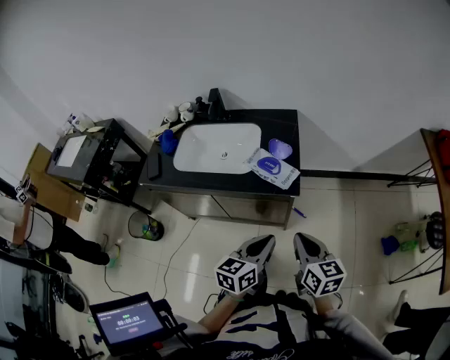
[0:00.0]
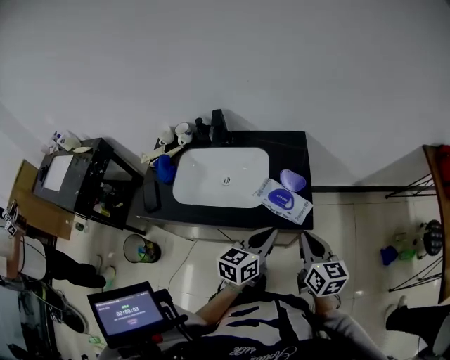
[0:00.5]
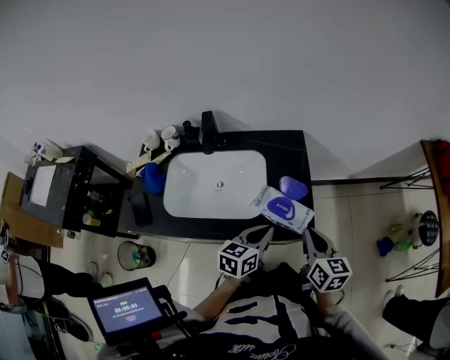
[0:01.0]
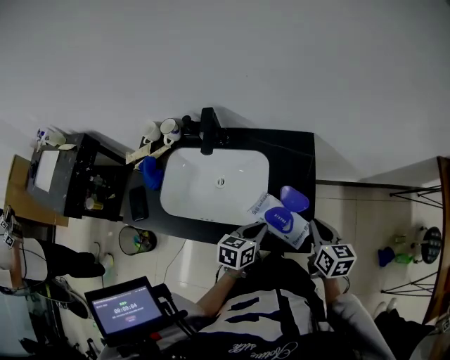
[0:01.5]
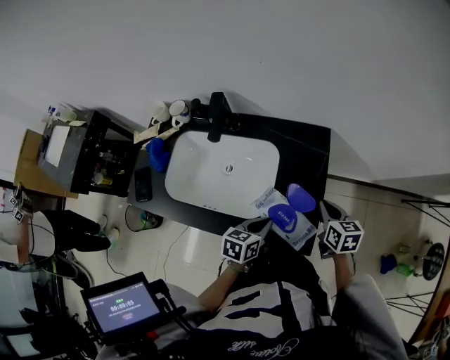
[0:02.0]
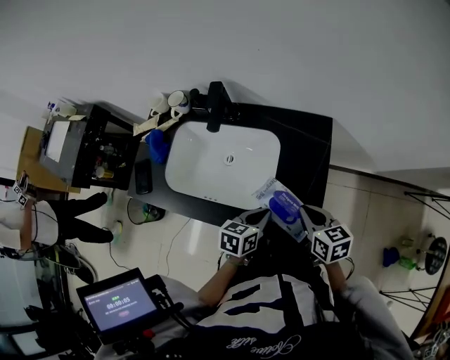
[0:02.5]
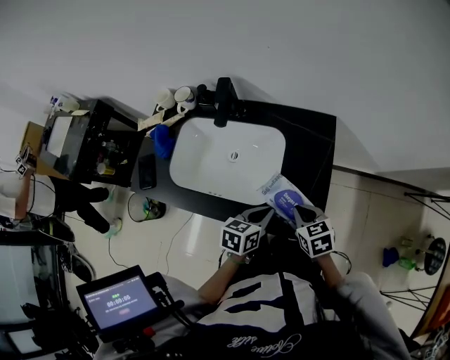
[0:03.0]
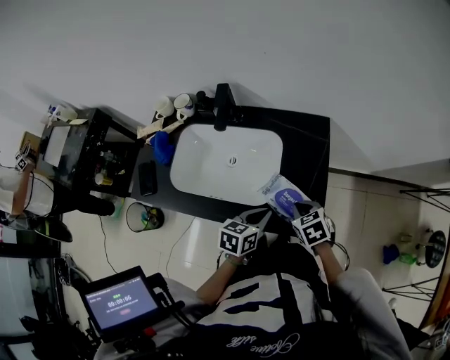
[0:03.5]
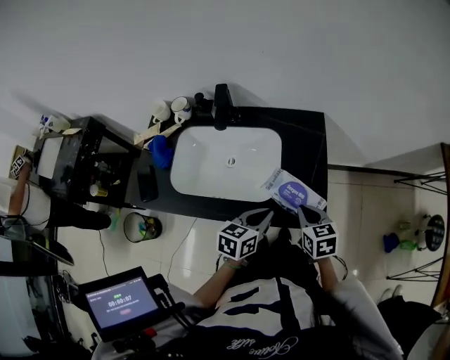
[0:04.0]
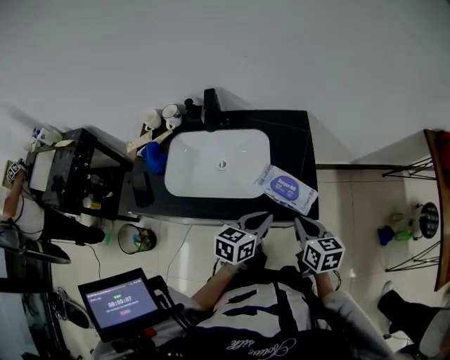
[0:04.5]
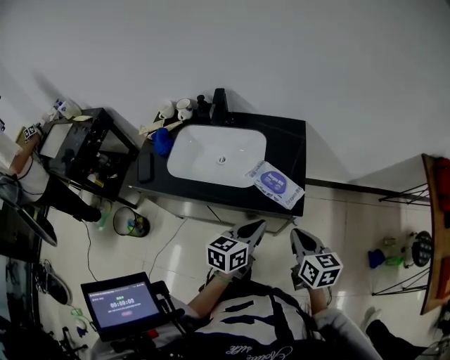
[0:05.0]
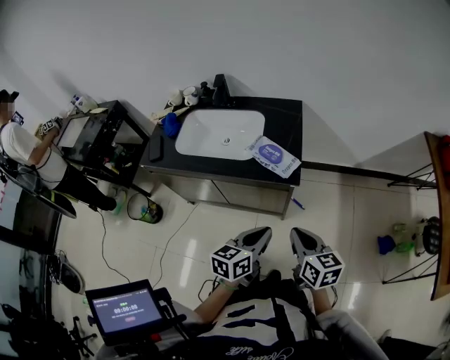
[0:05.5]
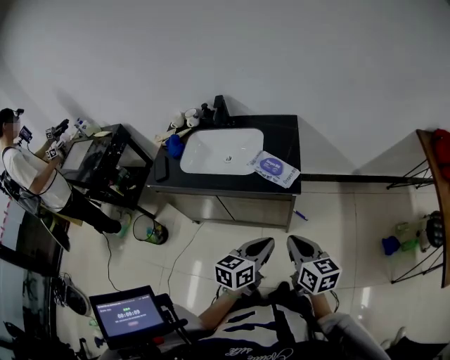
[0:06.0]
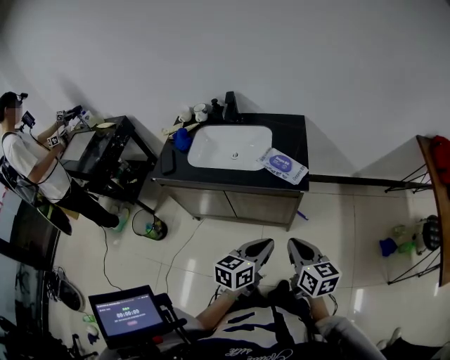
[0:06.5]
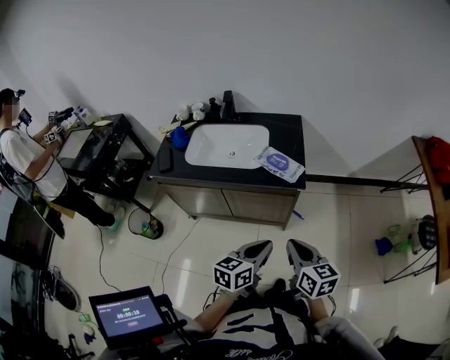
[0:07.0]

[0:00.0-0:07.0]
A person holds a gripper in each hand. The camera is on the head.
0:00.0 to 0:02.0: The left gripper moves forward, downward and to the left, some 30 cm, and turns by approximately 20 degrees, while the right gripper travels forward by approximately 35 cm.
0:02.0 to 0:03.5: The right gripper heads to the left and backward, covering roughly 15 cm, and turns by approximately 30 degrees.
0:03.5 to 0:05.0: The right gripper moves backward, upward and to the right, some 25 cm, and changes its angle by approximately 40 degrees; the left gripper shifts approximately 15 cm backward and upward.
0:05.0 to 0:07.0: The grippers both shift backward by roughly 20 cm.

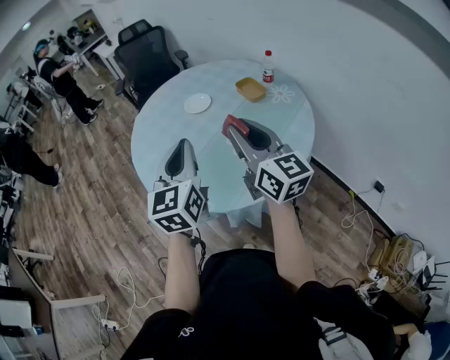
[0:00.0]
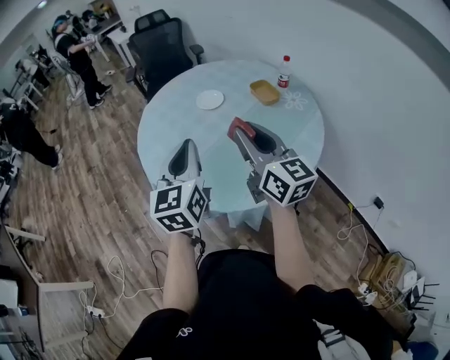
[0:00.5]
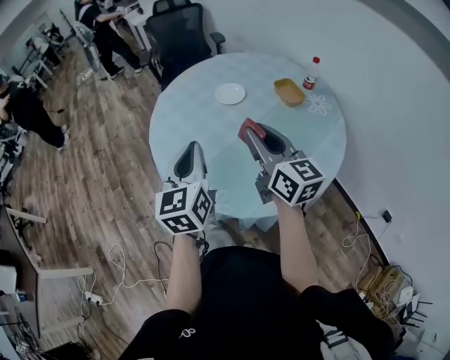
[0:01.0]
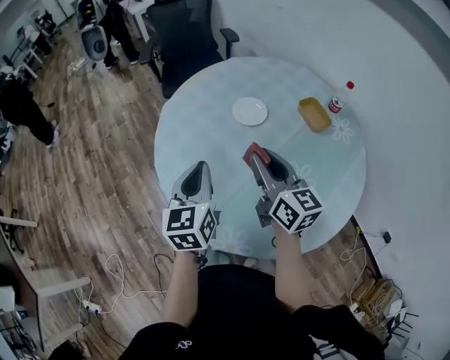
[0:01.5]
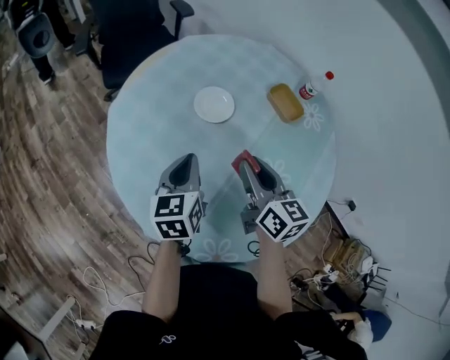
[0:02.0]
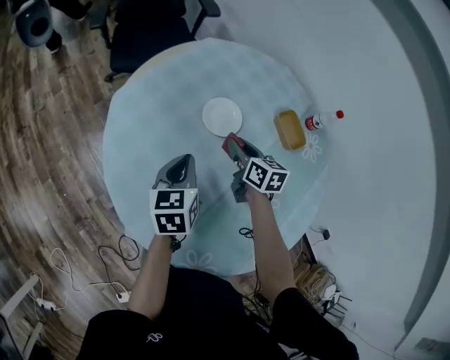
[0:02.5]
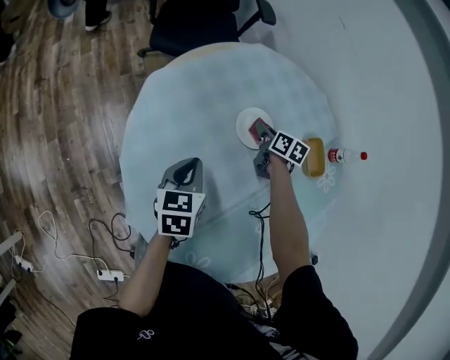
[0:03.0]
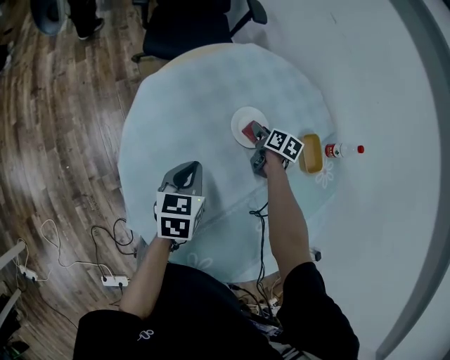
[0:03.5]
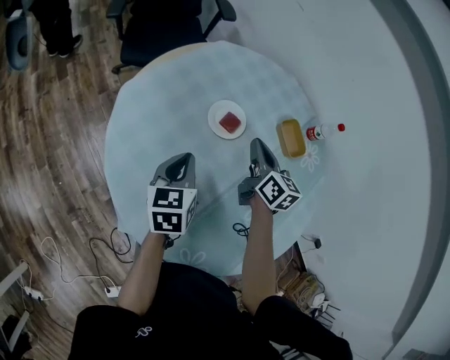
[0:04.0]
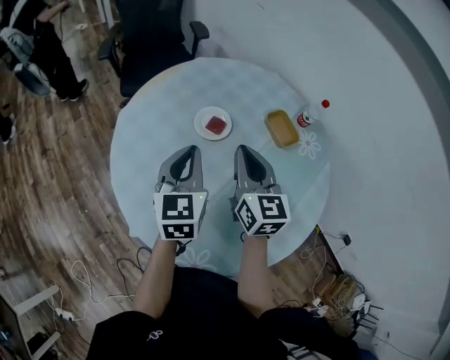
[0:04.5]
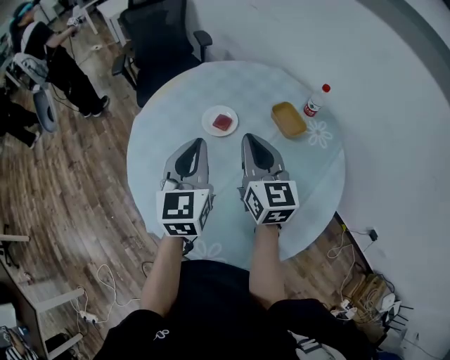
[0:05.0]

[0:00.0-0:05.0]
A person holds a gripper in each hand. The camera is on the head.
0:00.0 to 0:02.5: The two grippers travel together, forward, some 40 cm. The grippers both shift downward by approximately 25 cm. The right gripper tilts its fingers approximately 40 degrees downward; the left gripper turns by about 30 degrees.
0:02.5 to 0:05.0: The left gripper moves upward, to the right and backward, roughly 20 cm, and swivels some 30 degrees; the right gripper travels upward and backward by about 25 cm, tips its fingers upward by some 30 degrees, and closes its fingers.

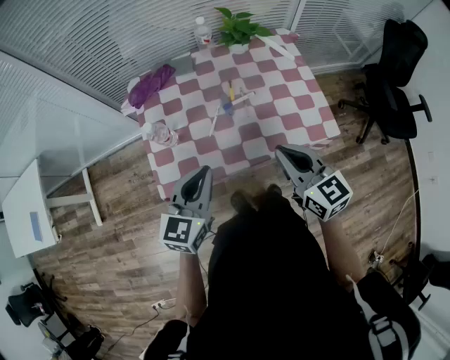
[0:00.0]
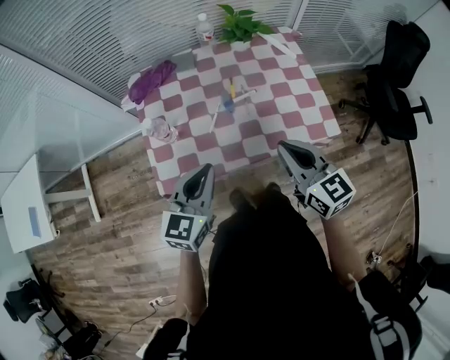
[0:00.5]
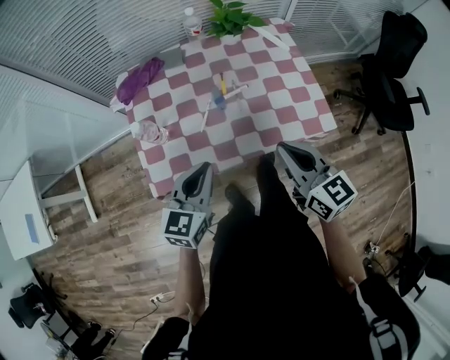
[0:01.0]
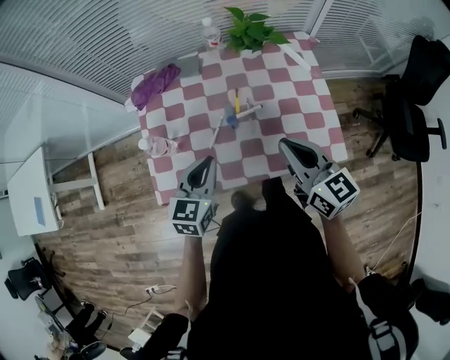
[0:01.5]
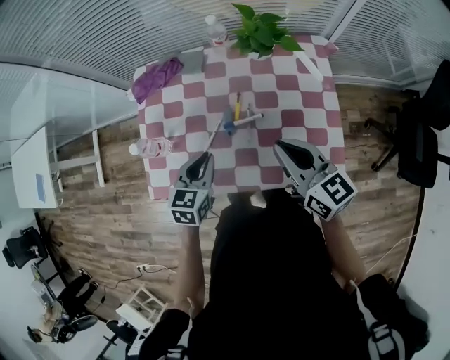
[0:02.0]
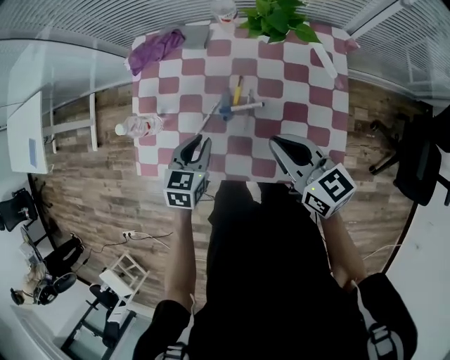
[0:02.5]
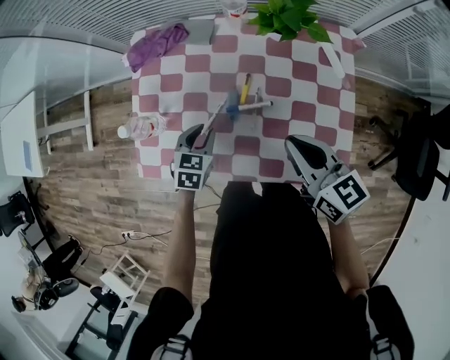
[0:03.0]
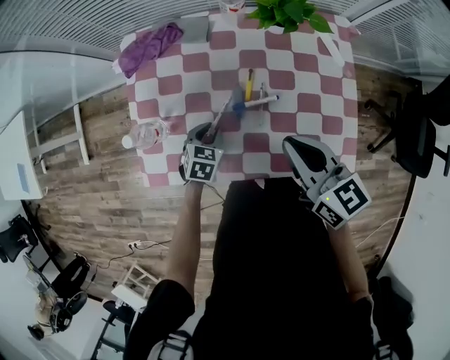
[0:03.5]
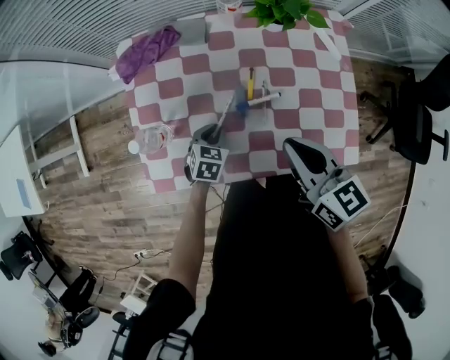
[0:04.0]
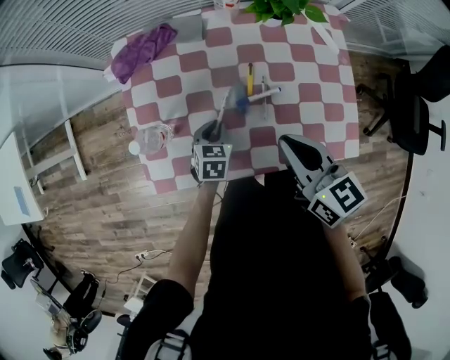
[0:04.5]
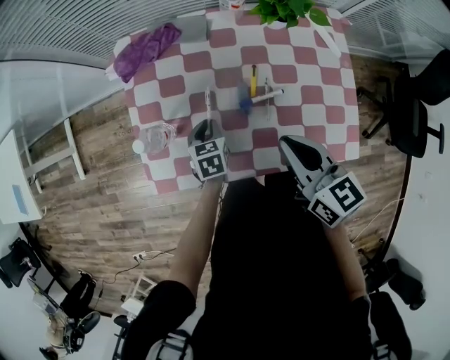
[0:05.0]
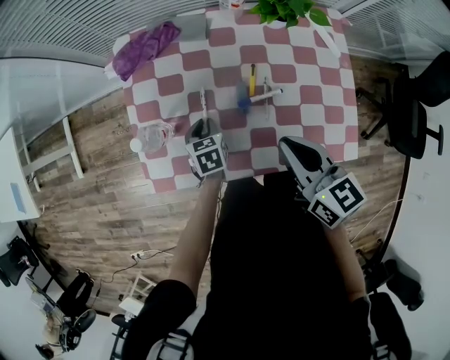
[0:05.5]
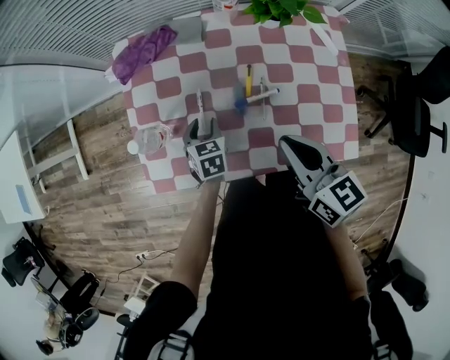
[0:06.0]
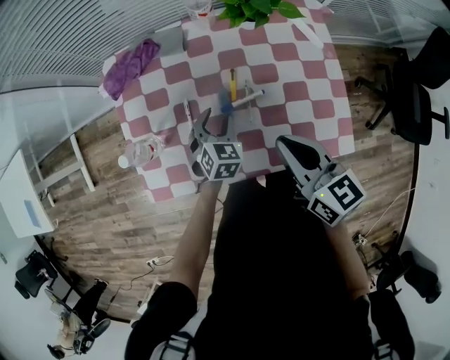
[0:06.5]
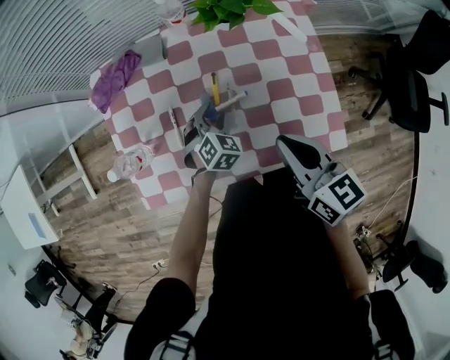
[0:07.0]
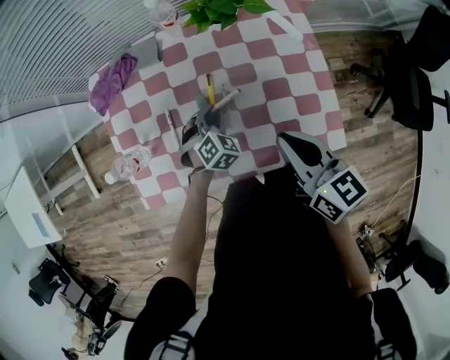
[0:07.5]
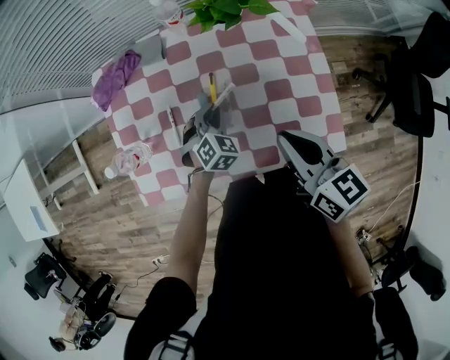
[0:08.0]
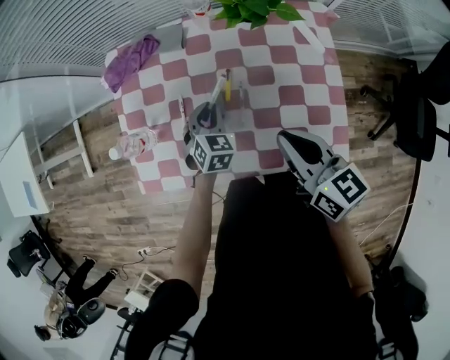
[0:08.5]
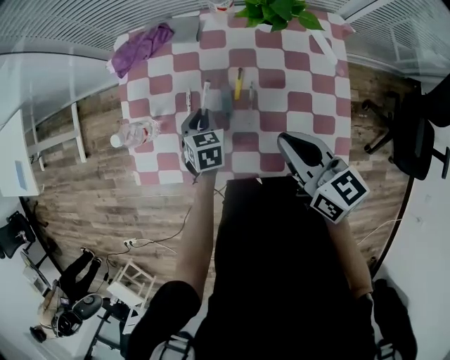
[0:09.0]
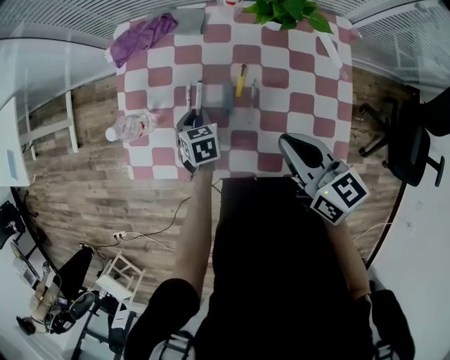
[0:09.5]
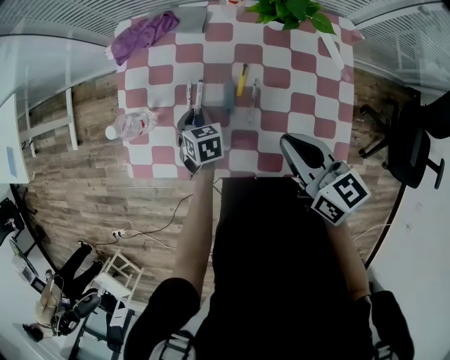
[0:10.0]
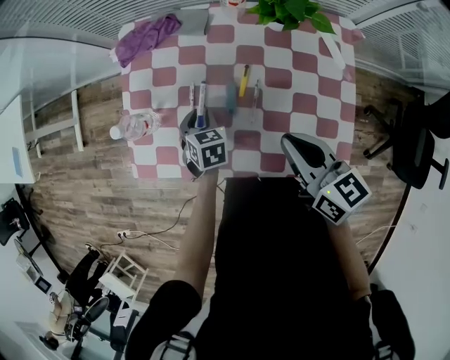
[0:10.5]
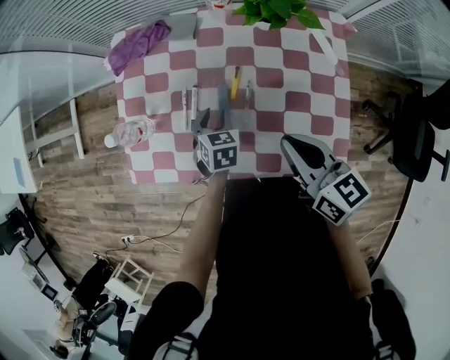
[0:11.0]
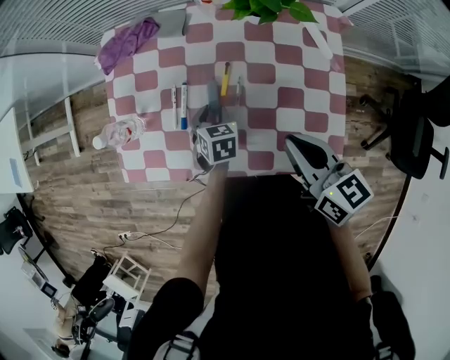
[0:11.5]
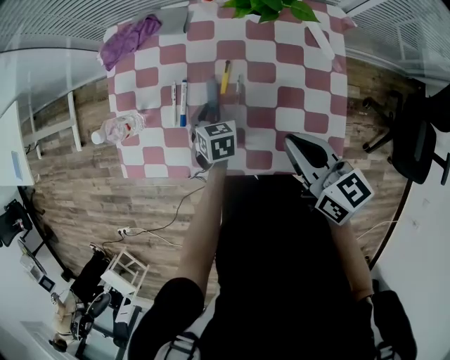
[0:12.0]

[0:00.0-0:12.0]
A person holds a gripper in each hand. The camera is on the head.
0:00.0 to 0:02.0: The left gripper travels forward, downward and to the right by some 20 cm, and rotates approximately 30 degrees, while the right gripper heads forward and to the right, covering roughly 20 cm.
0:02.0 to 0:04.0: The left gripper heads downward, covering approximately 15 cm, and changes its angle by approximately 20 degrees; the right gripper travels to the left by some 5 cm.
0:04.0 to 0:06.0: The left gripper turns by about 20 degrees, and opens.
0:06.0 to 0:08.0: Both grippers move to the right, approximately 15 cm. The left gripper rotates around the line of its fingers by roughly 50 degrees, clockwise from behind, and closes.
0:08.0 to 0:10.0: The right gripper ends up roughly 5 cm from where it was; the left gripper heads to the left, covering approximately 15 cm, and twists approximately 50 degrees counterclockwise, seen from behind.
0:10.0 to 0:12.0: The left gripper moves to the right, roughly 10 cm, while the right gripper is displaced to the right by approximately 5 cm.

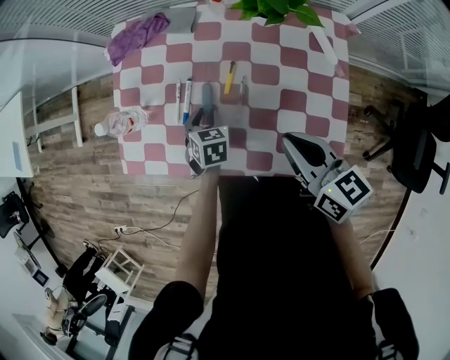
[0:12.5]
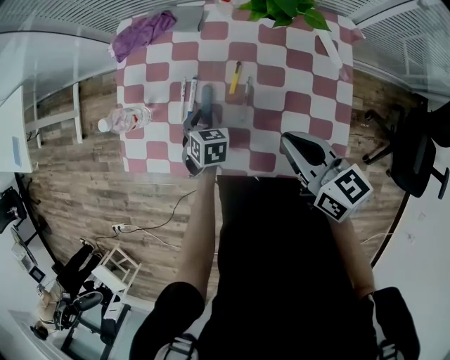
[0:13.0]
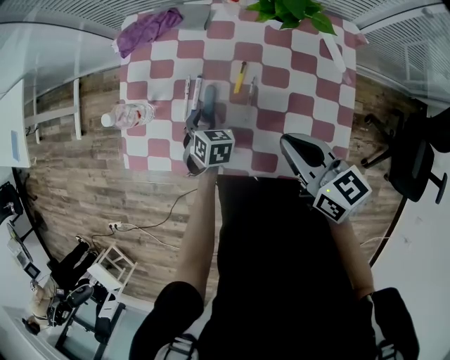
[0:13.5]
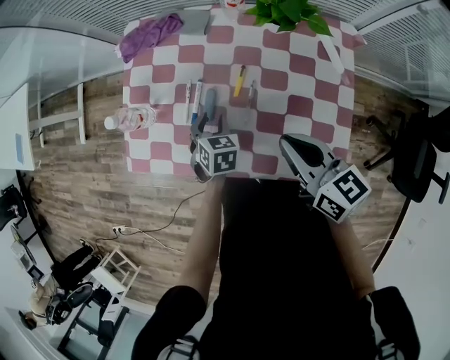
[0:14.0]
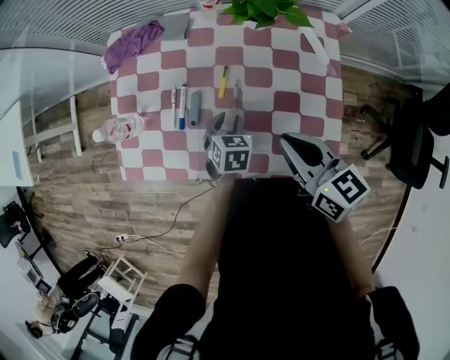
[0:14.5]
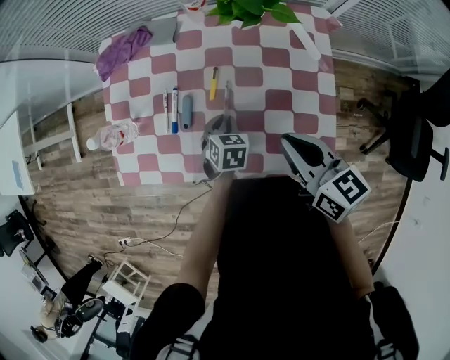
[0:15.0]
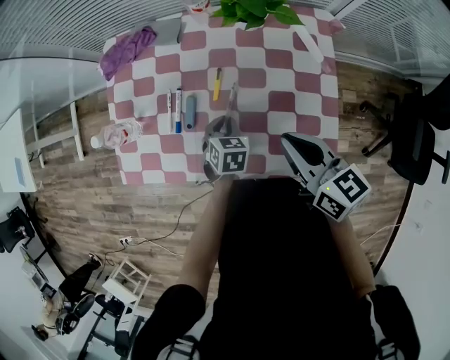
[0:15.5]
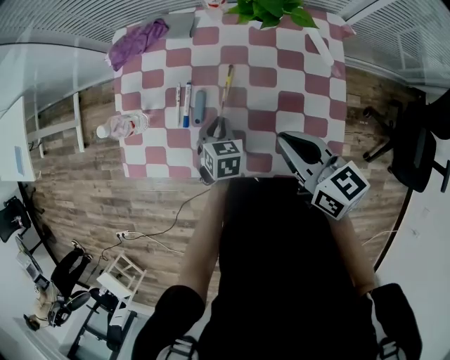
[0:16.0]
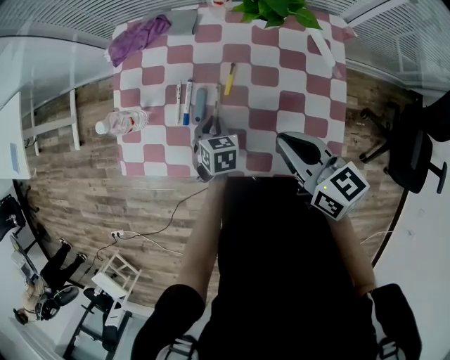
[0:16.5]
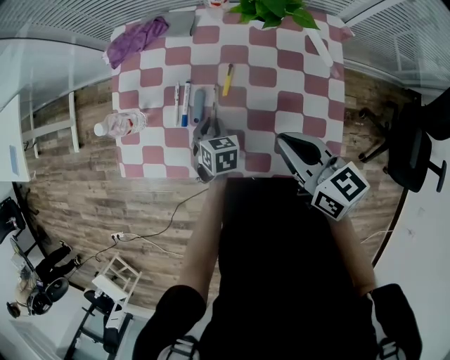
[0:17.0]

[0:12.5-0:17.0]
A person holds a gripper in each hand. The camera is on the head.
0:12.5 to 0:14.5: The left gripper travels to the right by about 5 cm.
0:14.5 to 0:17.0: The left gripper travels to the left by about 5 cm, and closes its fingers.
